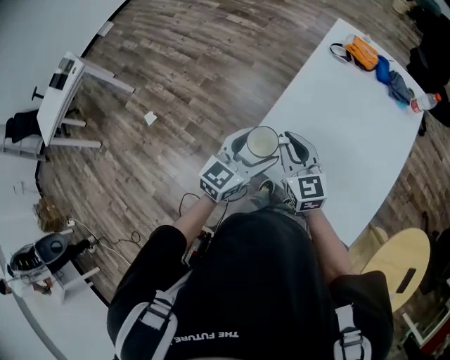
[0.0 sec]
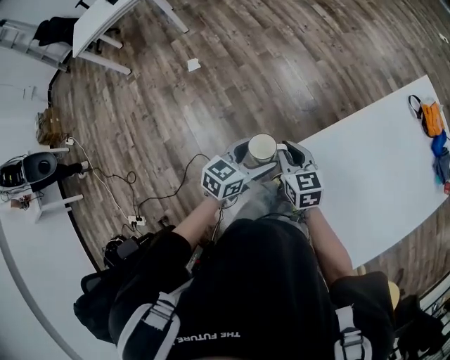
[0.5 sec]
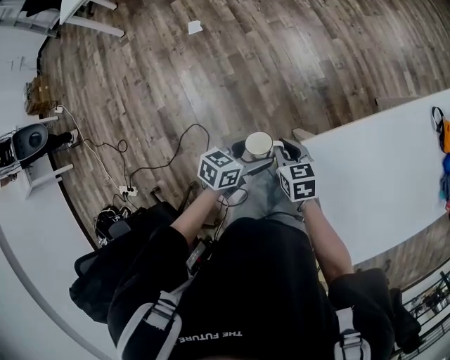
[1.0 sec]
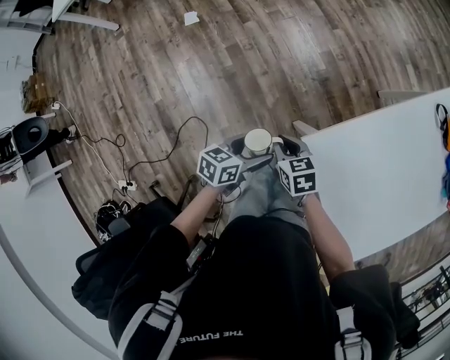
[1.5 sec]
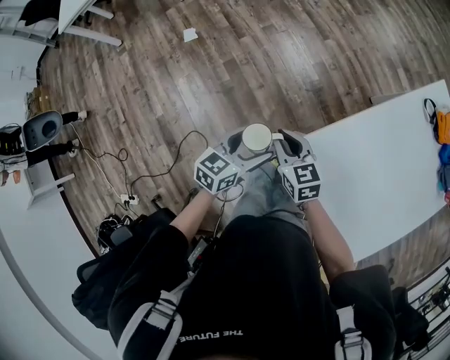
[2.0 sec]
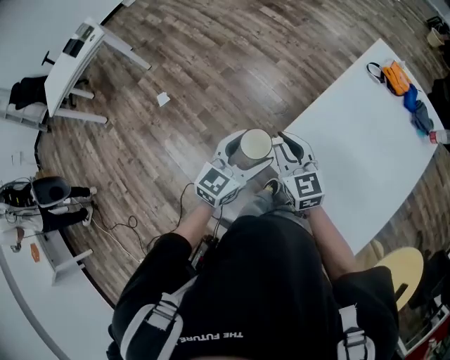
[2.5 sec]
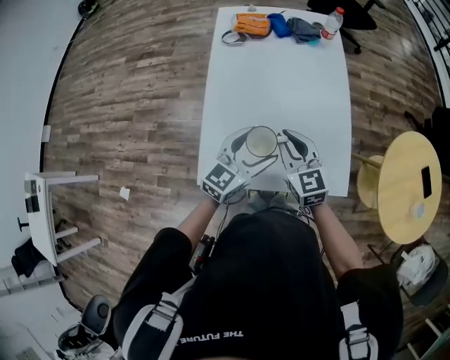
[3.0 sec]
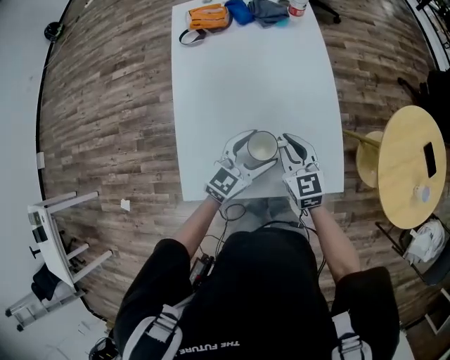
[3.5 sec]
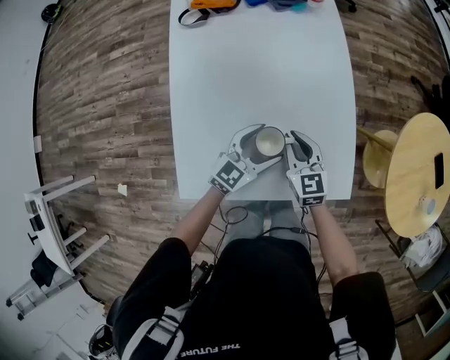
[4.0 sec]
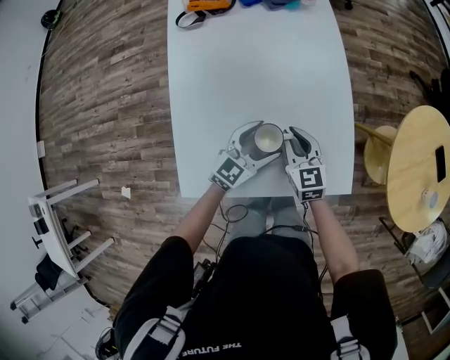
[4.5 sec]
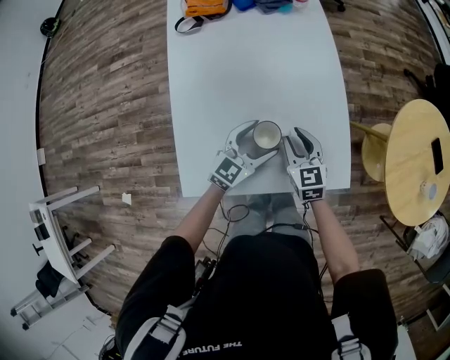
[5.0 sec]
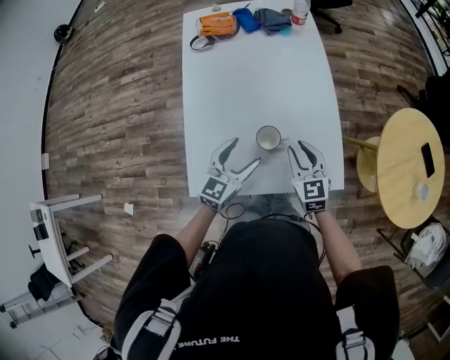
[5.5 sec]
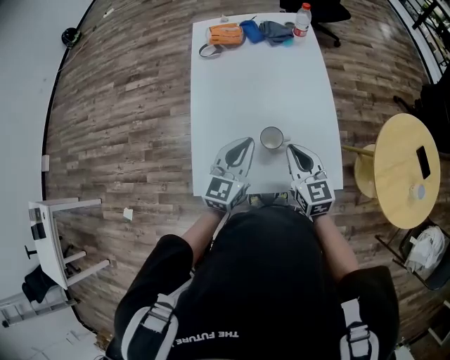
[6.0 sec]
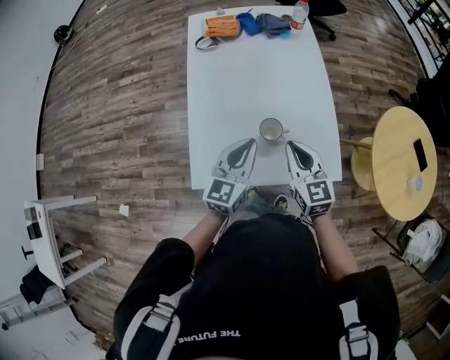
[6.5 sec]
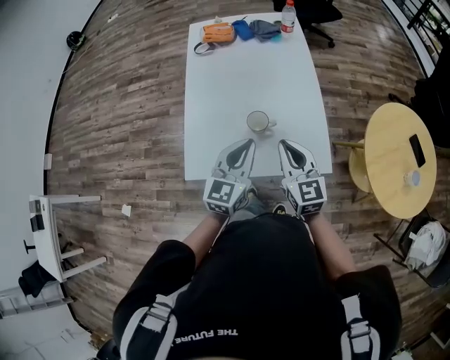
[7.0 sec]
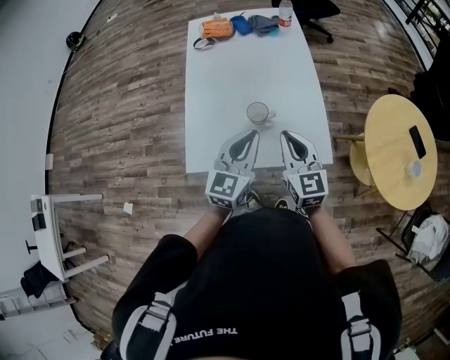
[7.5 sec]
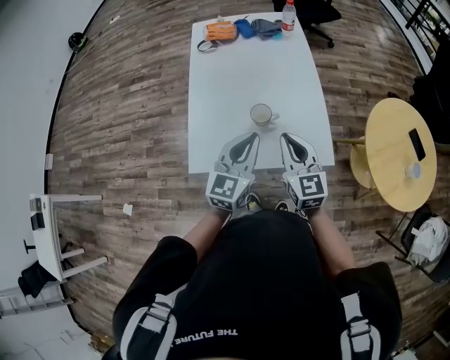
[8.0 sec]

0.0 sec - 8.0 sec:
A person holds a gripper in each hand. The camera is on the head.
0.0 sec - 2.0 sec: The right gripper ends up about 30 cm from where it was, and rotates approximately 40 degrees. Meanwhile the left gripper changes place by about 30 cm, and changes its angle by about 40 degrees.
2.0 sec - 4.0 sec: The two grippers travel together, about 50 cm. The right gripper changes its angle by approximately 70 degrees. Meanwhile the left gripper changes its angle by roughly 80 degrees.
4.0 sec - 6.0 sec: The right gripper is displaced upward and backward by roughly 15 cm. The left gripper moves upward, some 15 cm, rotates roughly 30 degrees, and closes its fingers.
6.0 sec - 8.0 sec: The left gripper is displaced backward and to the right by some 10 cm, while the right gripper moves backward and upward, some 10 cm.

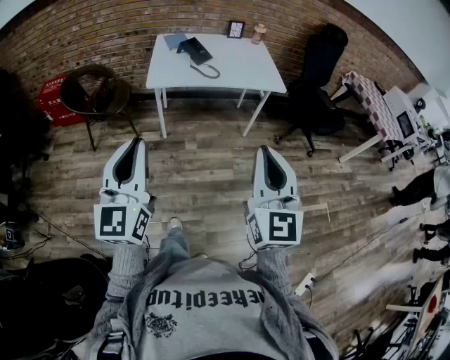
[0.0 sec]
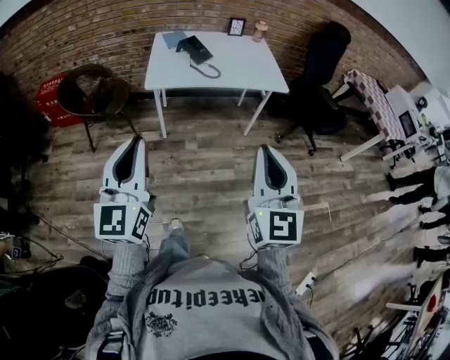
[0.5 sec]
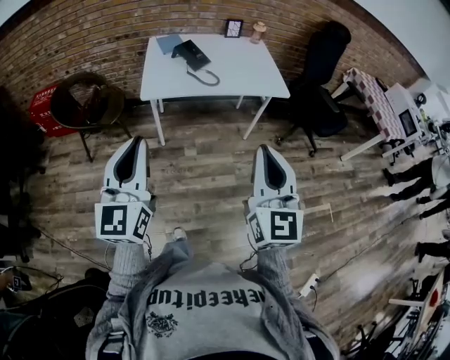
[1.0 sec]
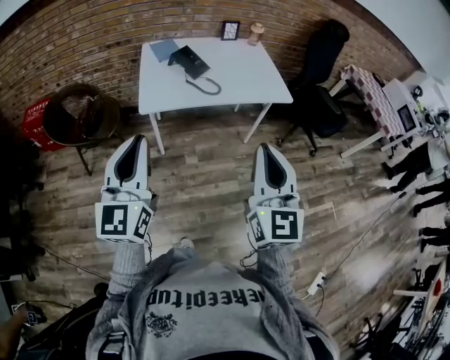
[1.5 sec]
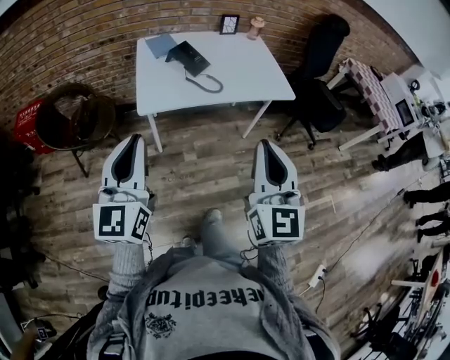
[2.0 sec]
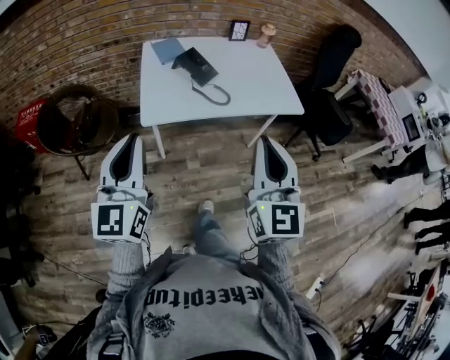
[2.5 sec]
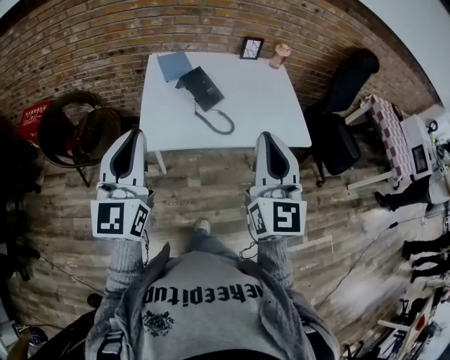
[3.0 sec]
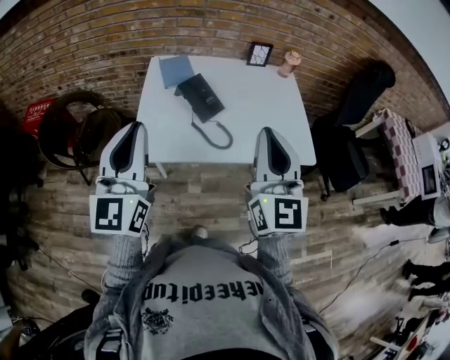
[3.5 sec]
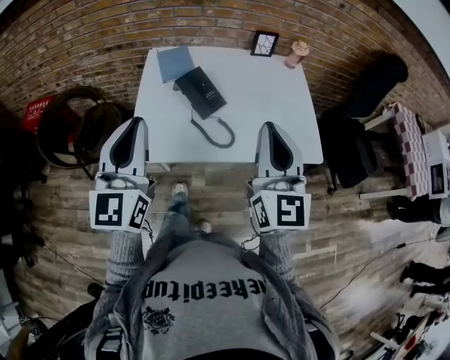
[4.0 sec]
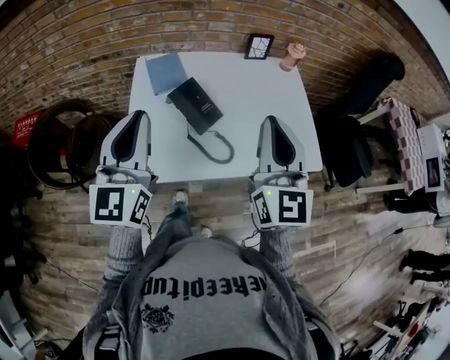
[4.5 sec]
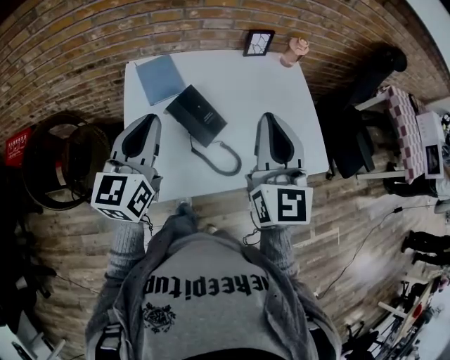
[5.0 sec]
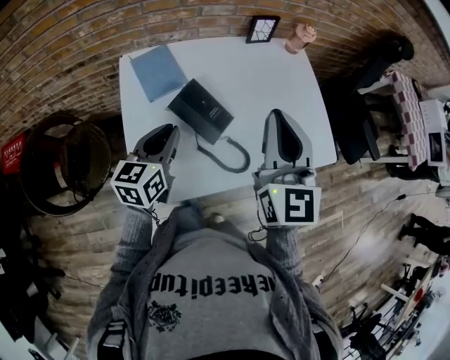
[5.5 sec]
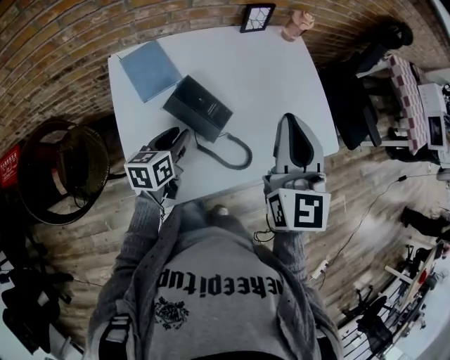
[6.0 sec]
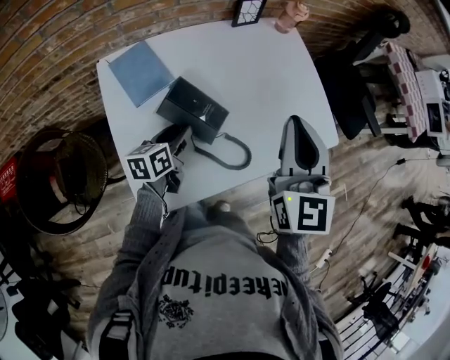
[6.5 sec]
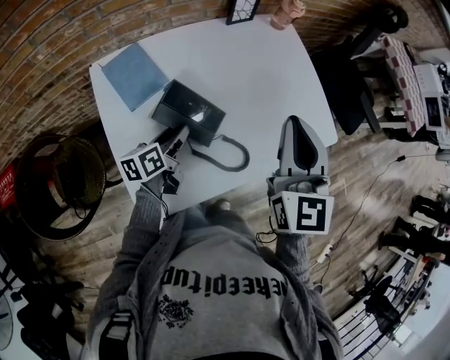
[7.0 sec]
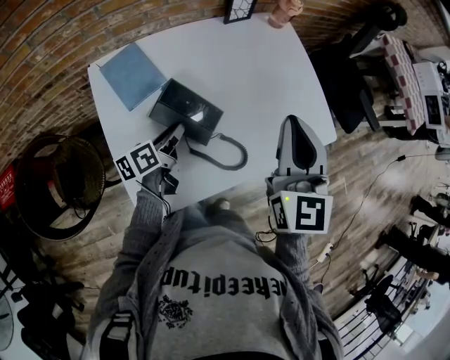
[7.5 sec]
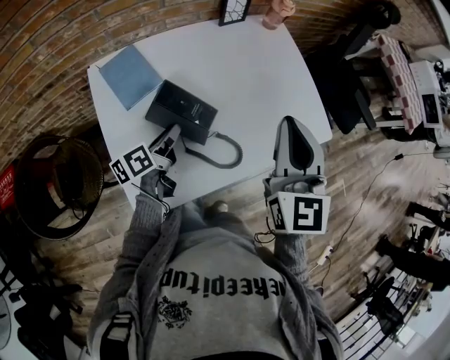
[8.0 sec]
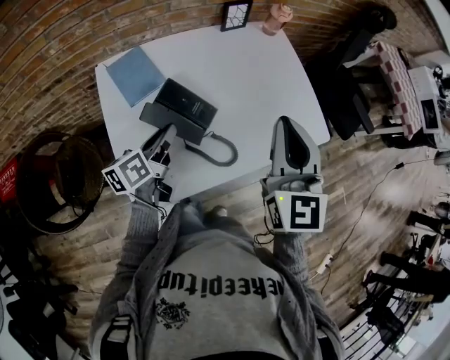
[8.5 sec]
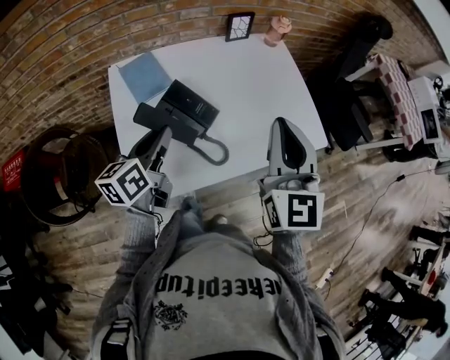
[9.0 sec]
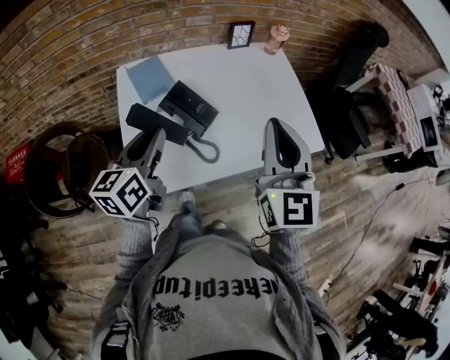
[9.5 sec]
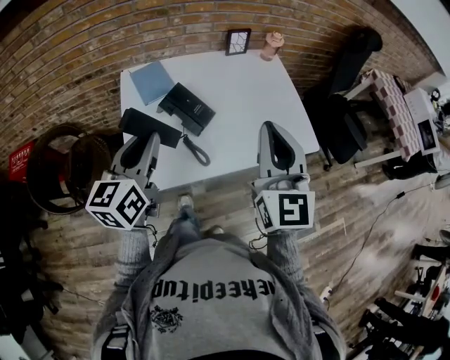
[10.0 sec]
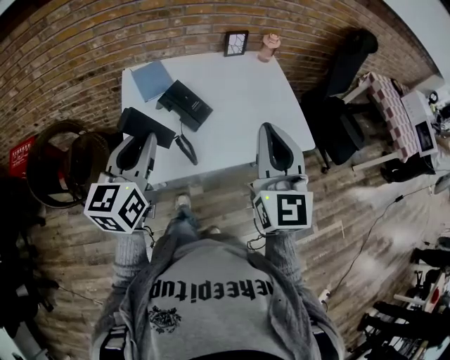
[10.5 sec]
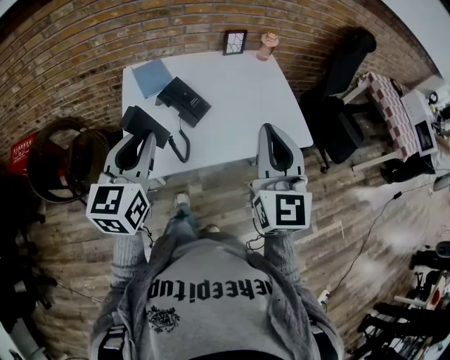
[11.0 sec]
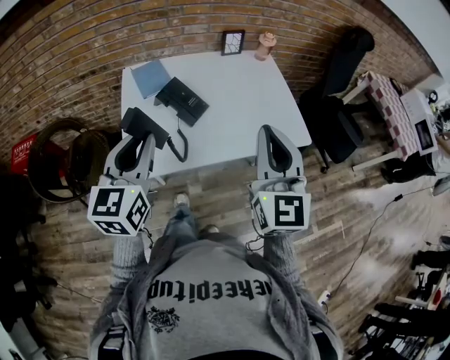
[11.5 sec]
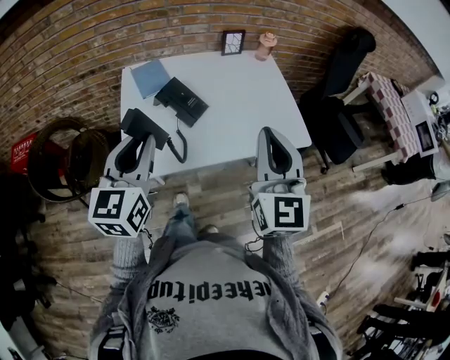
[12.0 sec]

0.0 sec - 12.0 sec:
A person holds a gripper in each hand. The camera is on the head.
0.0 sec - 2.0 sec: The right gripper heads forward and to the left, covering approximately 25 cm. The left gripper heads forward, covering some 25 cm.
2.0 sec - 4.0 sec: Both grippers move forward, approximately 35 cm.
4.0 sec - 6.0 sec: The left gripper goes about 30 cm downward, and angles its fingers downward, by roughly 40 degrees; the right gripper moves about 20 cm, and turns by about 20 degrees.
6.0 sec - 8.0 sec: The left gripper swivels approximately 30 degrees.
8.0 sec - 10.0 sec: The left gripper travels upward and backward by approximately 30 cm, and rolls clockwise, seen from behind, by about 50 degrees; the right gripper heads backward and upward, covering about 15 cm.
10.0 sec - 12.0 sec: The two grippers go some 5 cm backward.

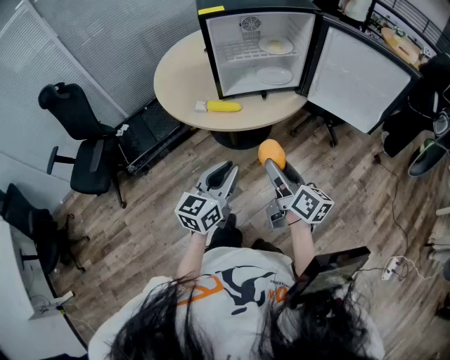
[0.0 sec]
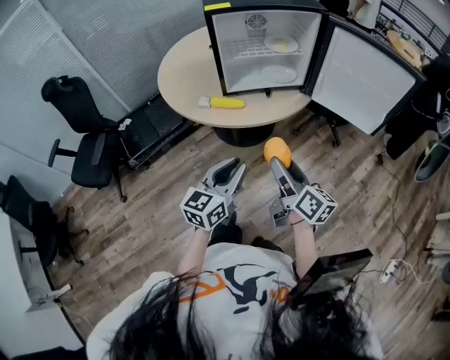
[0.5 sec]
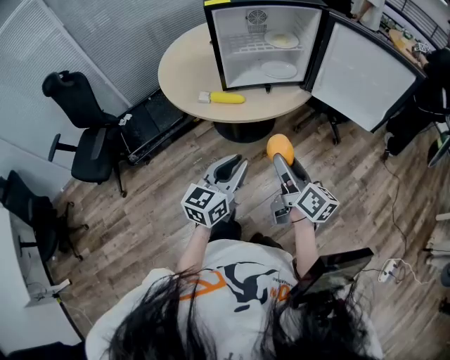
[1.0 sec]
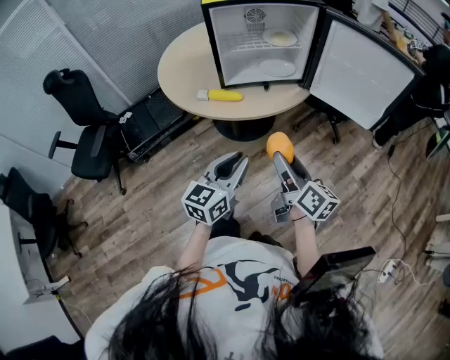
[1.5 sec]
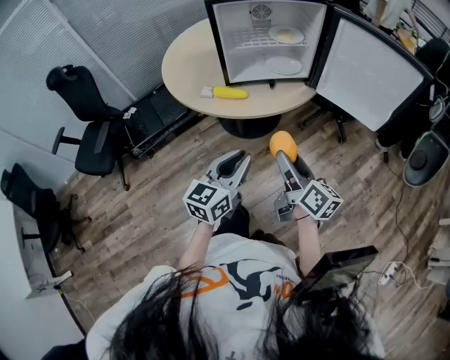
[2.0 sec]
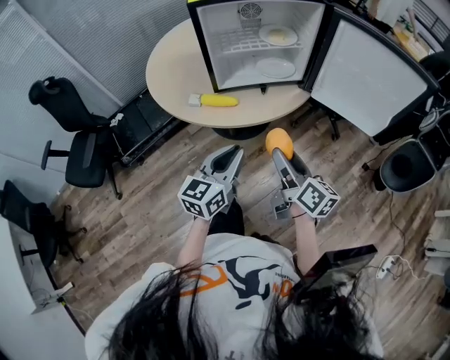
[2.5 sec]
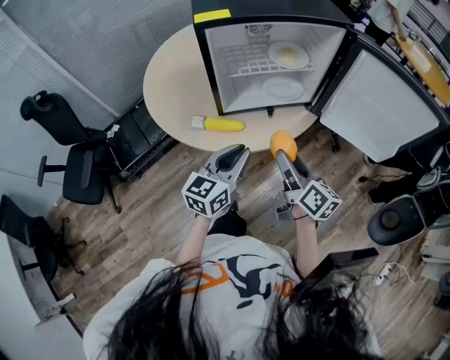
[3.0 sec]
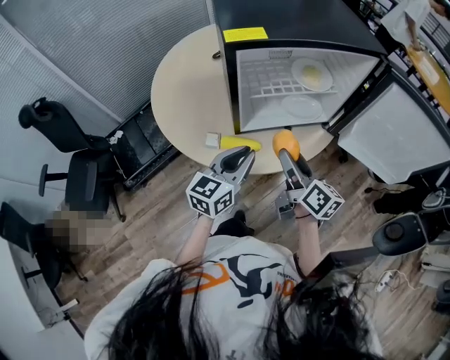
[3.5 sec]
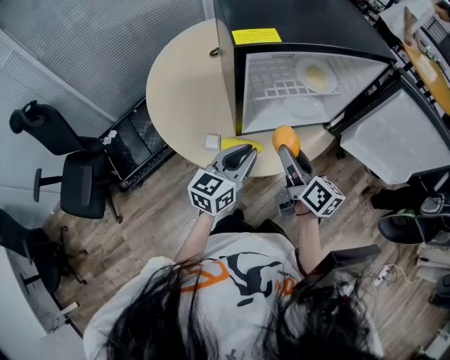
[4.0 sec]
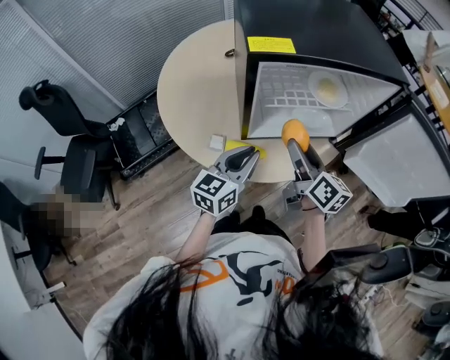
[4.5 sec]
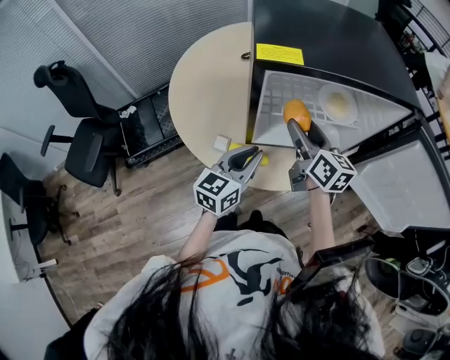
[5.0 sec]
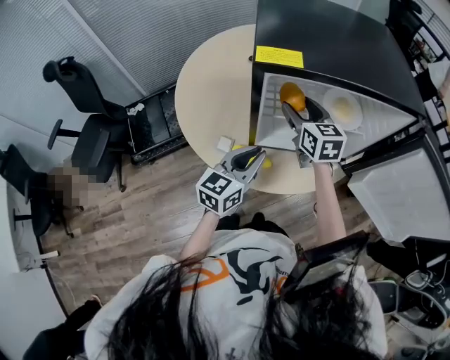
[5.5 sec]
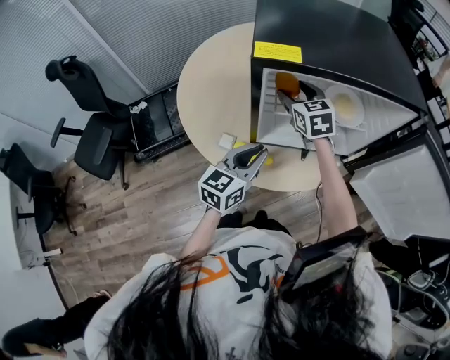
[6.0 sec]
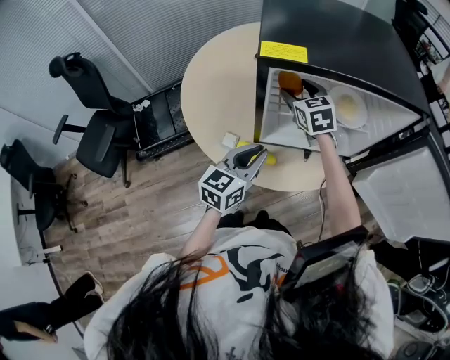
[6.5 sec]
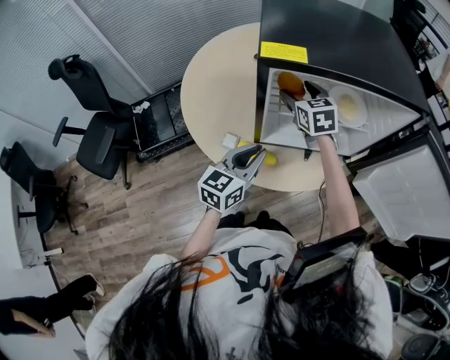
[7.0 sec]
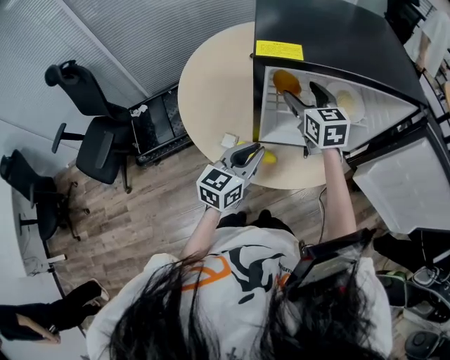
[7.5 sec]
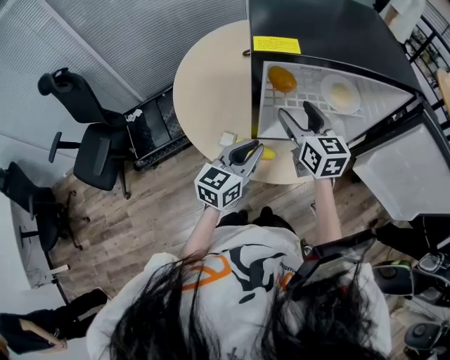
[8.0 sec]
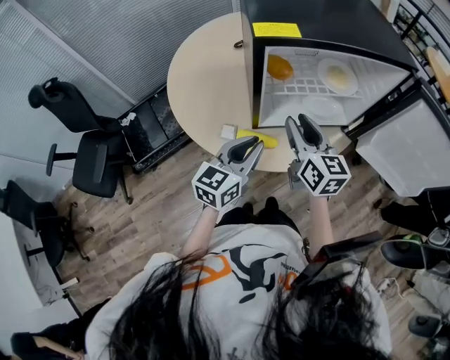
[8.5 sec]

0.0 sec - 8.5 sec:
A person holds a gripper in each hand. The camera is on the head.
0.0 sec - 2.0 sec: The grippers make only small movements.
2.0 sec - 4.0 sec: The two grippers go approximately 30 cm forward and to the left.
4.0 sec - 6.5 sec: The right gripper is displaced forward by approximately 25 cm, and twists about 60 degrees counterclockwise, seen from behind.
6.5 sec - 8.5 sec: The right gripper is displaced backward by roughly 20 cm, changes its angle by some 40 degrees, and closes up.
